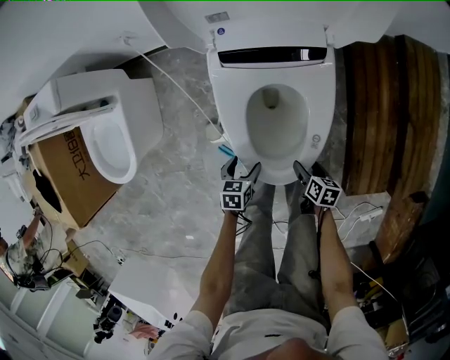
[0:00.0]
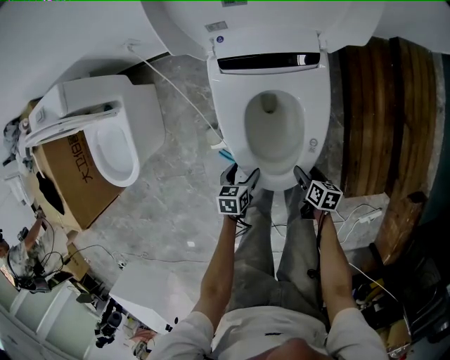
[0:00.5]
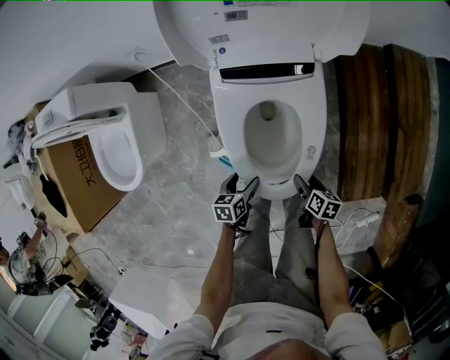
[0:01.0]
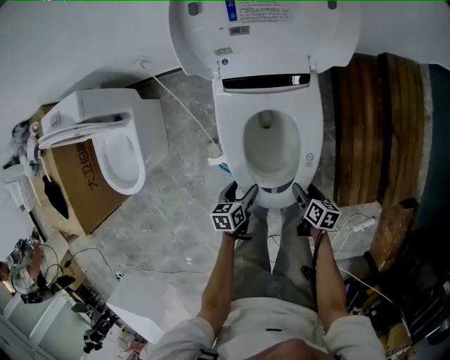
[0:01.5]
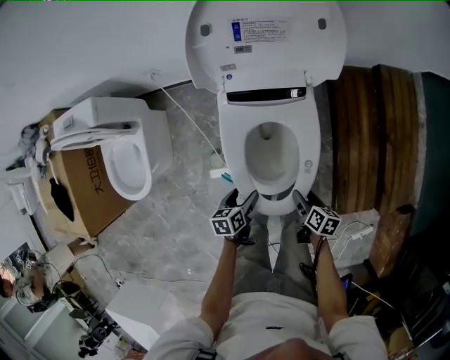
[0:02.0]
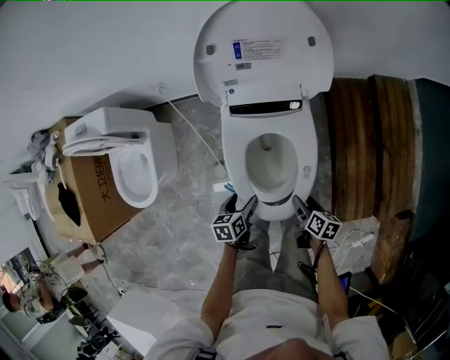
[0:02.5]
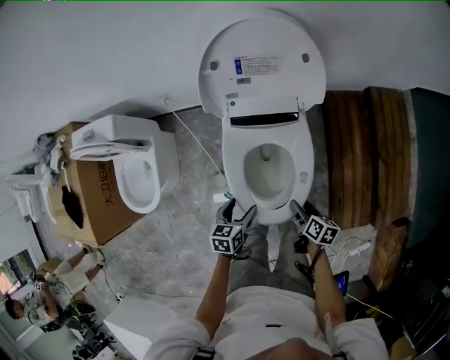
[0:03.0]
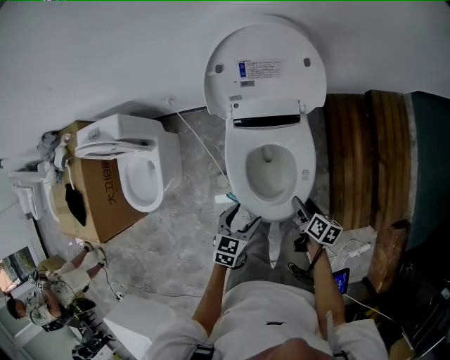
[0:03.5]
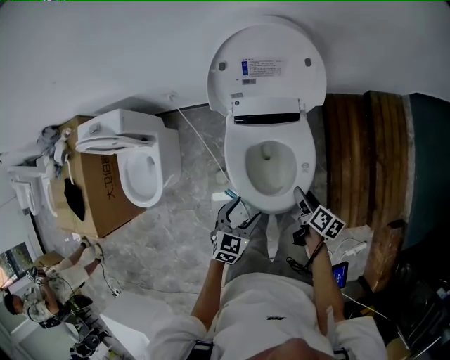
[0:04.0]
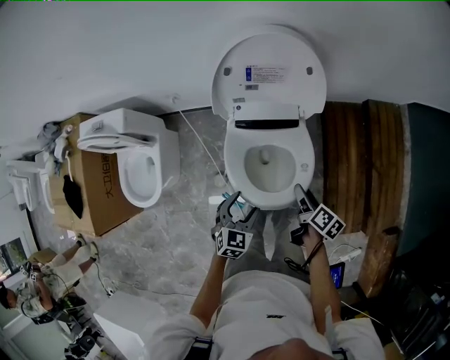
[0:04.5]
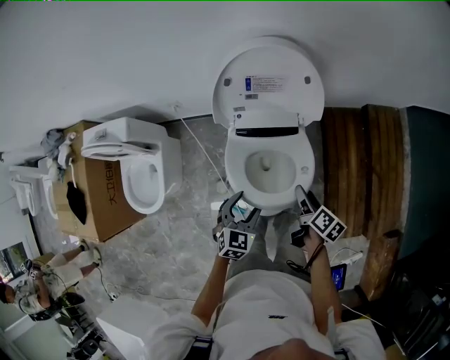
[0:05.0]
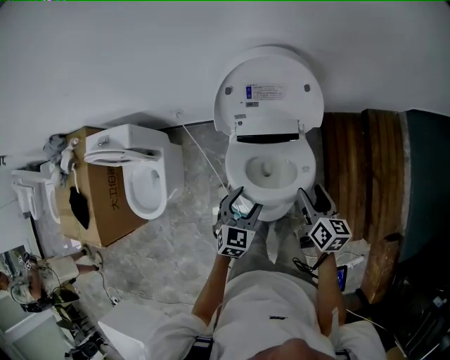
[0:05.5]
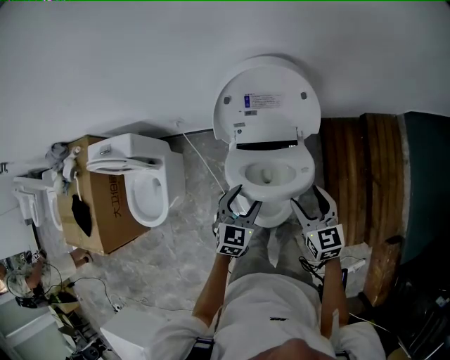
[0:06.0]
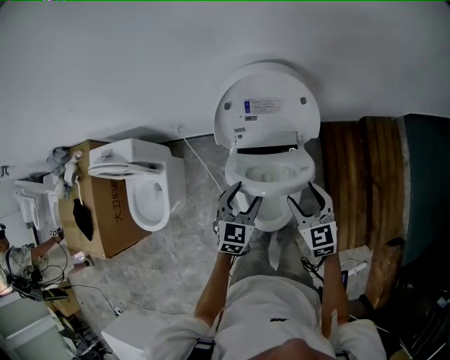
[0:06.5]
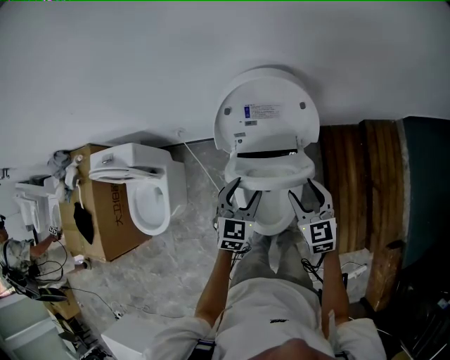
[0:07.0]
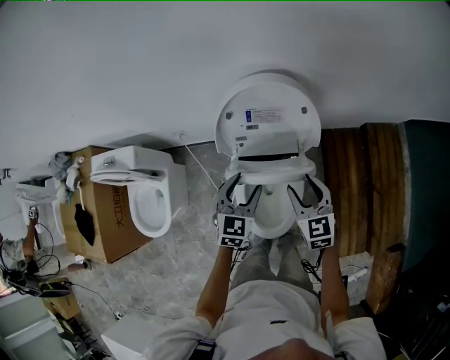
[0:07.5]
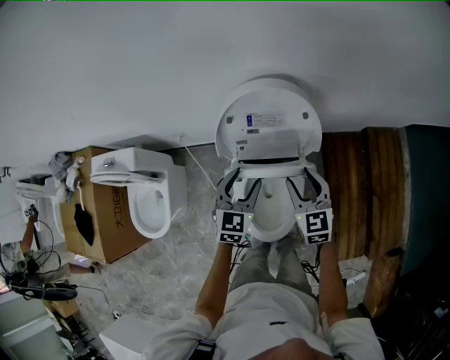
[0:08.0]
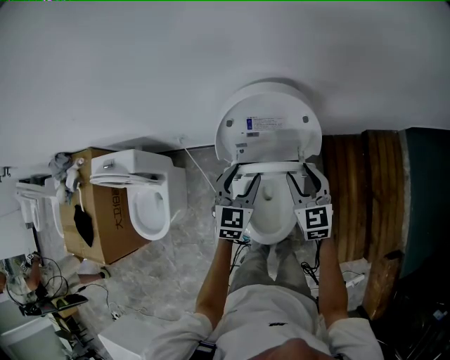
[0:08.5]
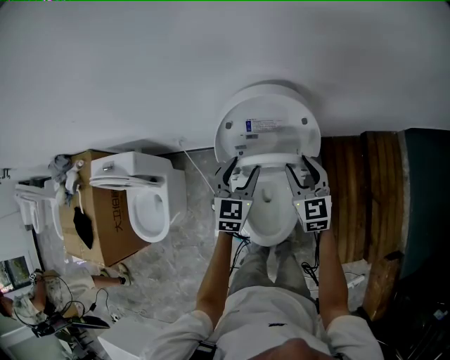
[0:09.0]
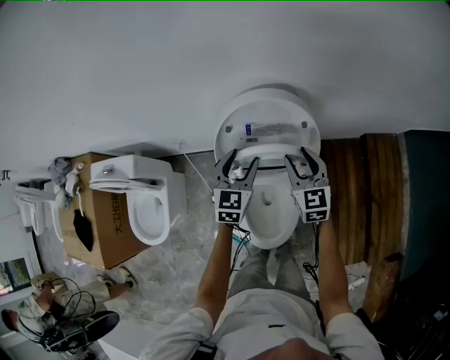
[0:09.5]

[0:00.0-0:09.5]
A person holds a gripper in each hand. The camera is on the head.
0:00.0 to 0:02.0: The two grippers go approximately 15 cm upward.
0:02.0 to 0:04.0: The right gripper travels upward and forward by approximately 15 cm, while the left gripper moves upward, about 20 cm, and rotates around the line of its fingers by some 50 degrees, clockwise from behind.
0:04.0 to 0:05.5: The right gripper shifts about 15 cm upward and forward, and rotates roughly 30 degrees. The left gripper moves forward and upward, roughly 10 cm.
0:05.5 to 0:07.5: The right gripper shifts about 10 cm forward, and rotates around the line of its fingers by some 40 degrees, counterclockwise from behind; the left gripper heads forward and upward, covering roughly 15 cm.
0:07.5 to 0:09.5: Both grippers travel together forward, approximately 10 cm.

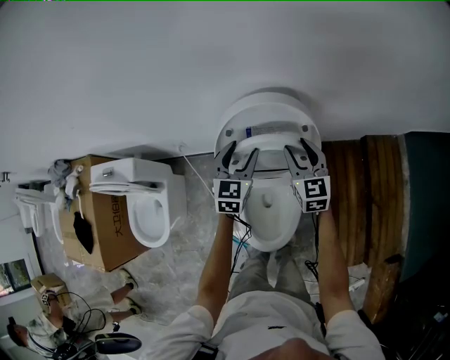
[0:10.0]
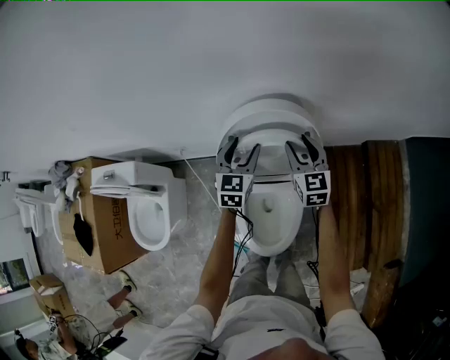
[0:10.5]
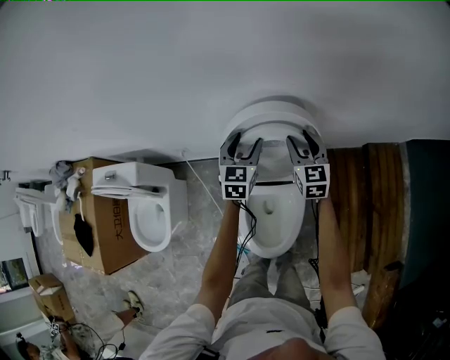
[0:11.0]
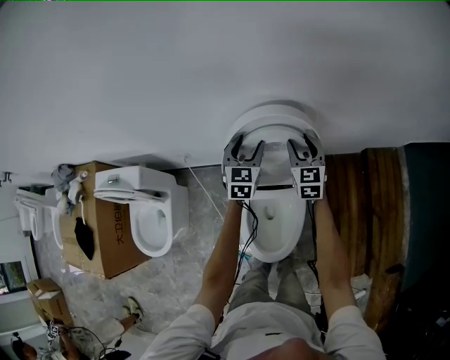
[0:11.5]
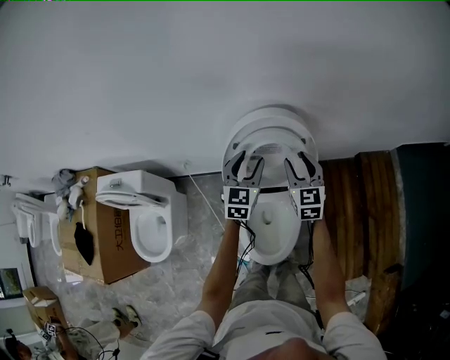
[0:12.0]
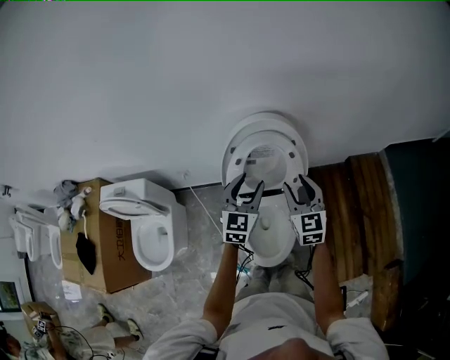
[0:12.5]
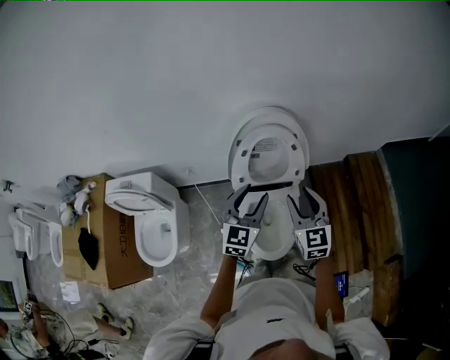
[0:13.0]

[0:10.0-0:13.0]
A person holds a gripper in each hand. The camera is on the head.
0:10.0 to 0:11.5: The grippers both shift forward by some 5 cm.
0:11.5 to 0:13.0: Both grippers travel together backward and upward, some 30 cm.

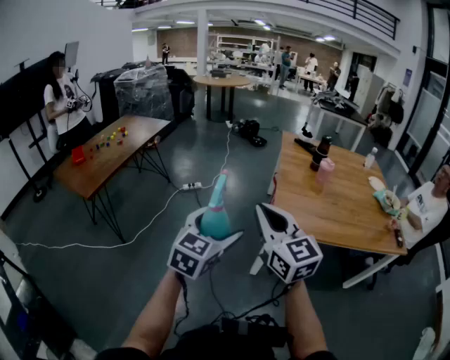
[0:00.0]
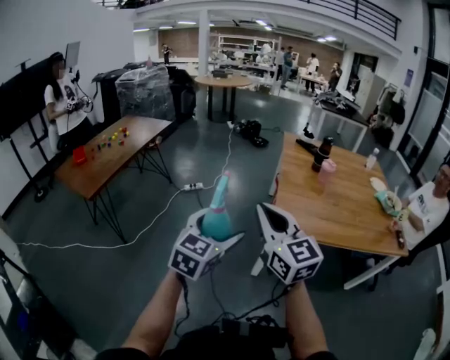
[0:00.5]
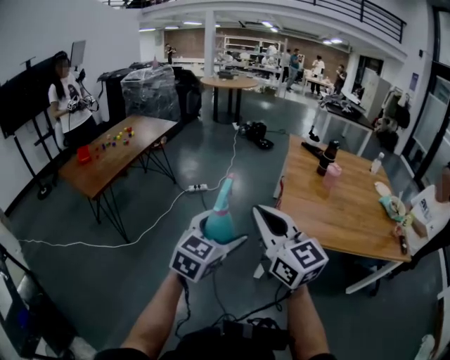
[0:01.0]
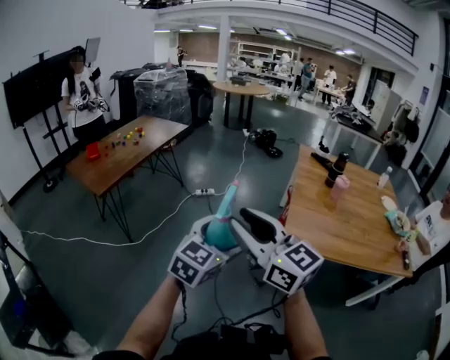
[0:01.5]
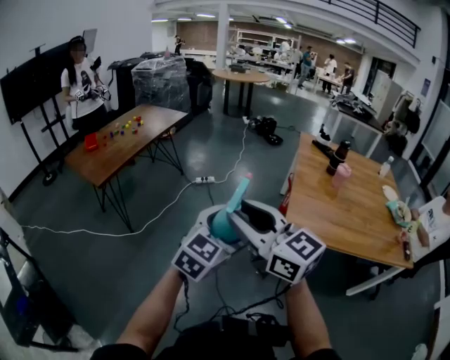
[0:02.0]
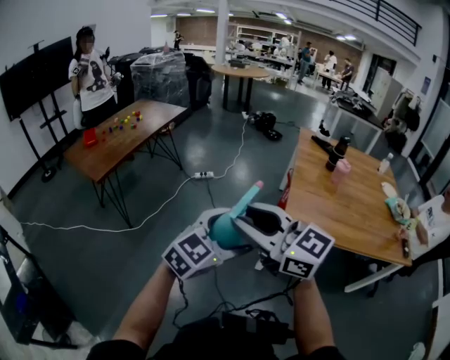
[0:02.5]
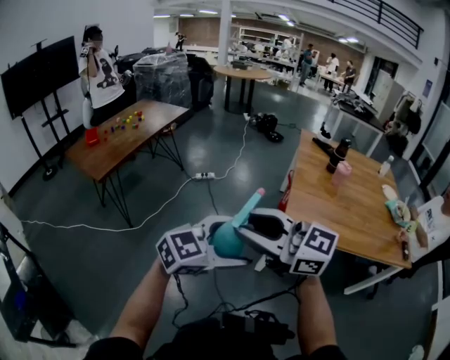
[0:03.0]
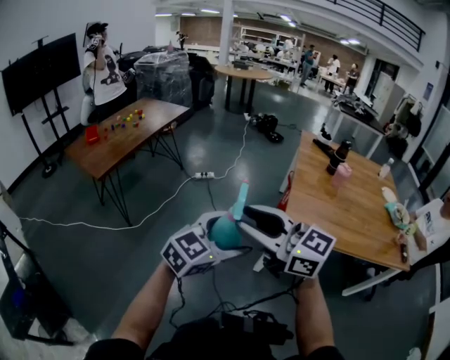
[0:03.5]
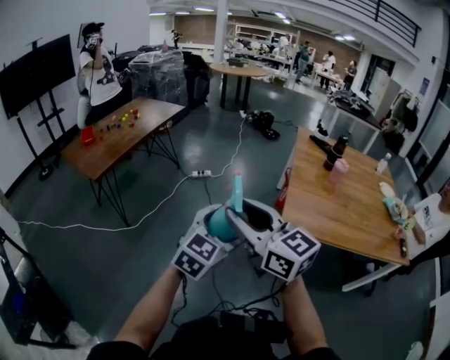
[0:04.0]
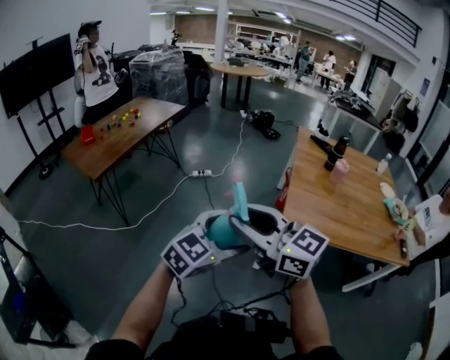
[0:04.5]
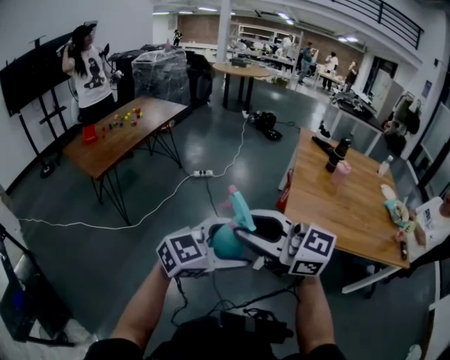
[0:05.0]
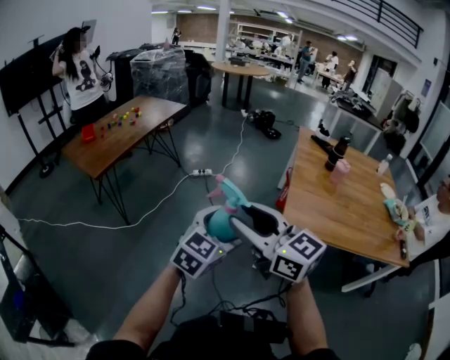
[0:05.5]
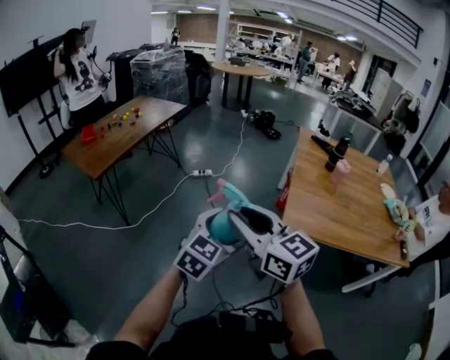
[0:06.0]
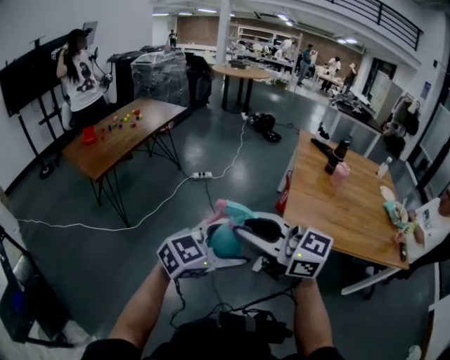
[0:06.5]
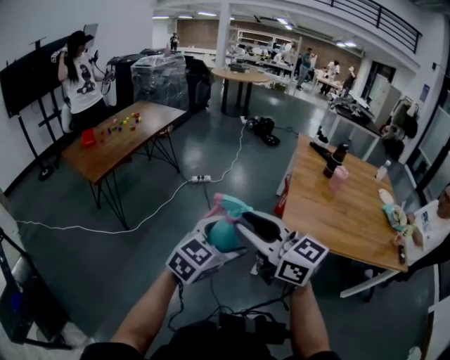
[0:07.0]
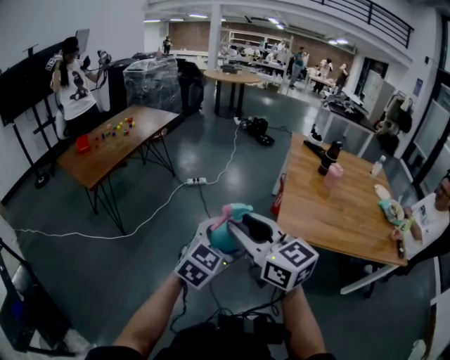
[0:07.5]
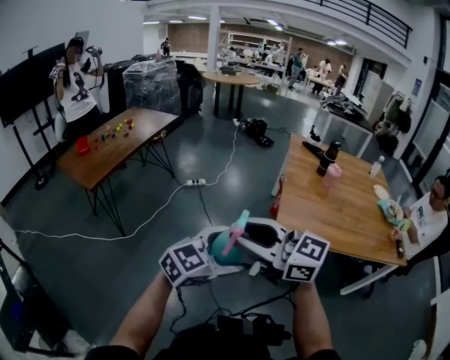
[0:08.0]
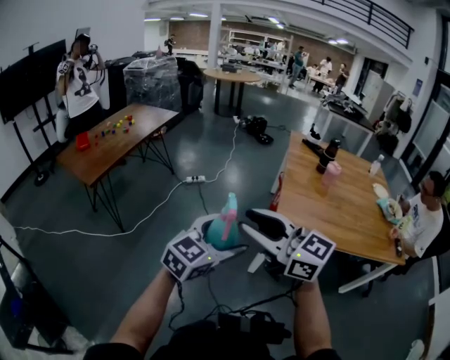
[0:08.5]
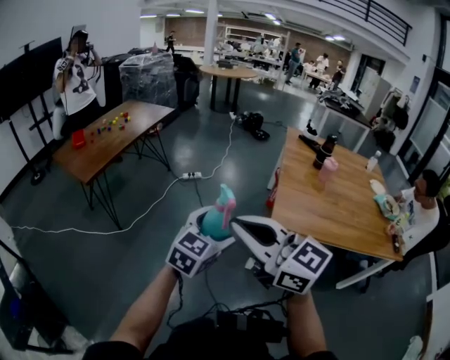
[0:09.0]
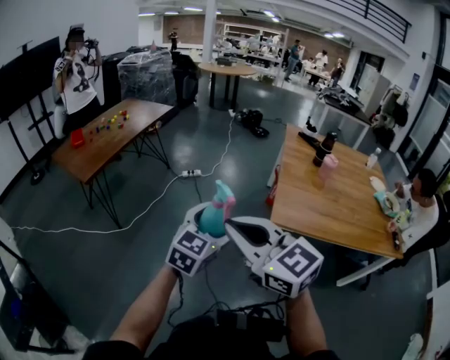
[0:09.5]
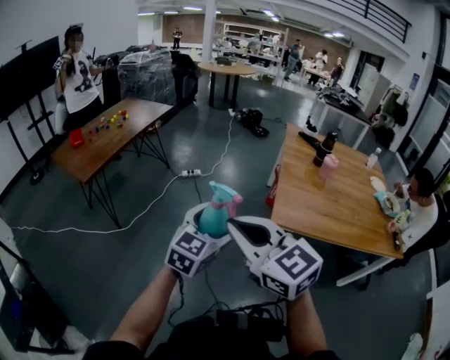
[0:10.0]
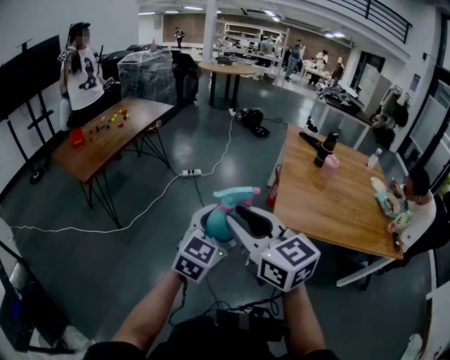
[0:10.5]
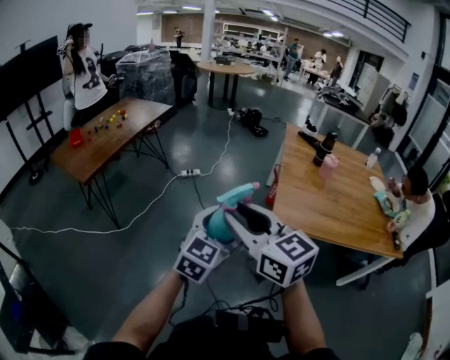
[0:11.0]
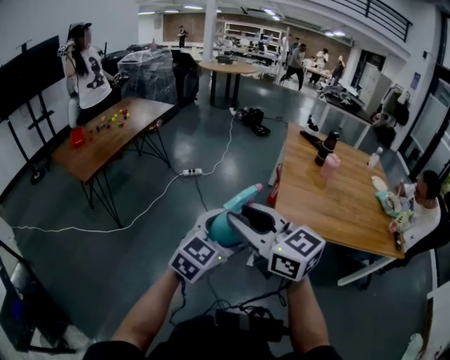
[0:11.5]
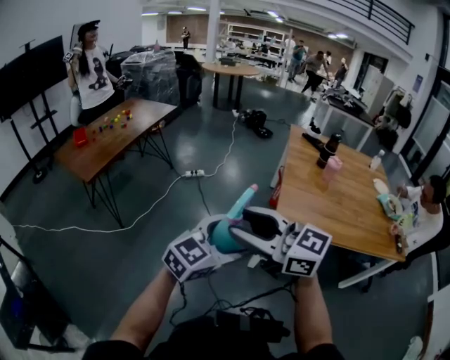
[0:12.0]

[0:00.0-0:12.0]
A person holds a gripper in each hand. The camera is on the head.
0:00.0 to 0:02.0: The right gripper moves to the left, approximately 10 cm, swivels roughly 30 degrees, and opens its fingers.
0:06.0 to 0:08.0: The left gripper changes place by some 10 cm, and swivels approximately 30 degrees, while the right gripper moves about 5 cm, and changes its angle by some 20 degrees.
0:08.0 to 0:10.0: The right gripper rotates roughly 30 degrees, and closes; the left gripper shifts by approximately 10 cm, and swivels roughly 30 degrees.
0:10.0 to 0:12.0: The left gripper travels backward by approximately 5 cm, and swivels approximately 20 degrees. Meanwhile the right gripper turns by approximately 20 degrees, and opens up.

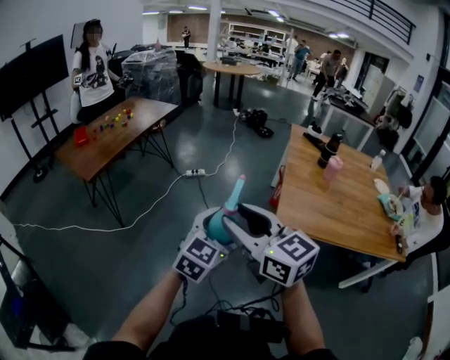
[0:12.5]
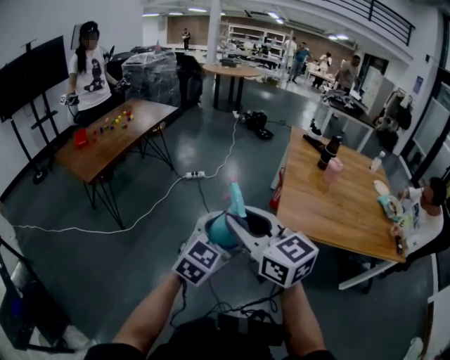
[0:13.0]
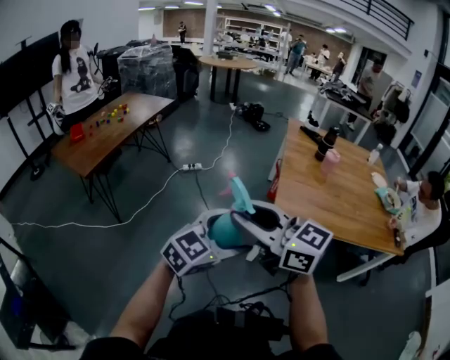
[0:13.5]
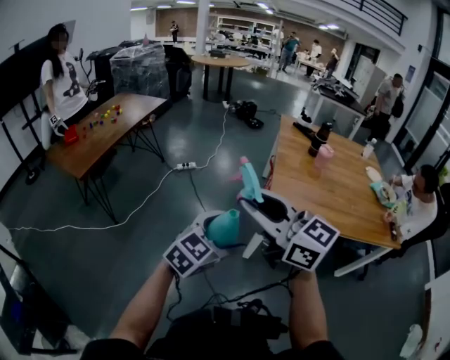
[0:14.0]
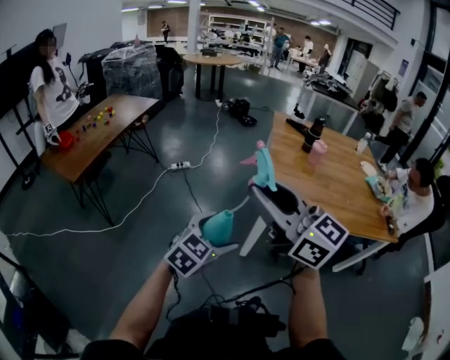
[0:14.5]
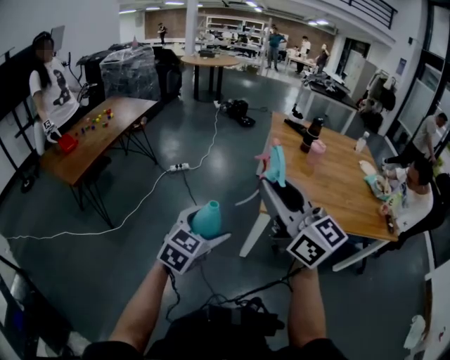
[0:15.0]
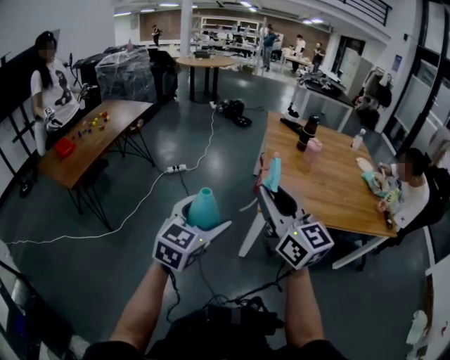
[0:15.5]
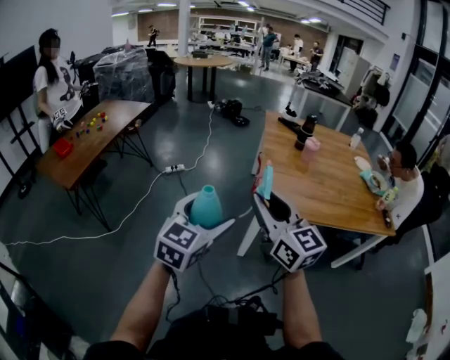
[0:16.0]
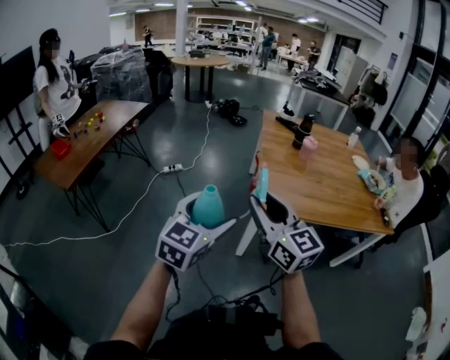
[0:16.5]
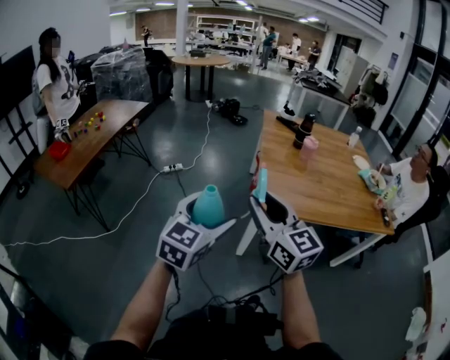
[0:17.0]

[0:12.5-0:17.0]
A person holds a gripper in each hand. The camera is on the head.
0:12.5 to 0:14.5: The left gripper goes about 5 cm downward. Meanwhile the right gripper is displaced to the right and upward by approximately 10 cm.
0:14.5 to 0:17.0: The right gripper heads downward, covering roughly 10 cm, and swivels approximately 20 degrees, while the left gripper shifts roughly 10 cm upward.
